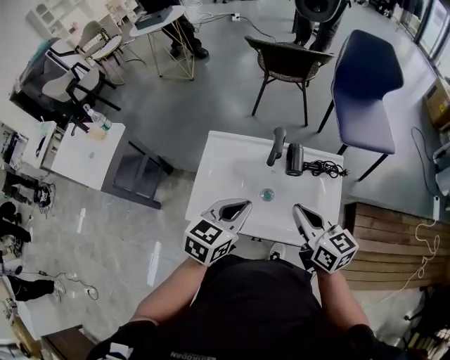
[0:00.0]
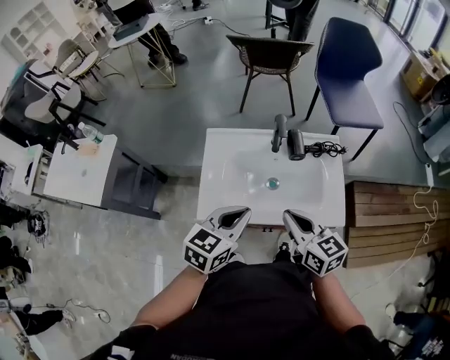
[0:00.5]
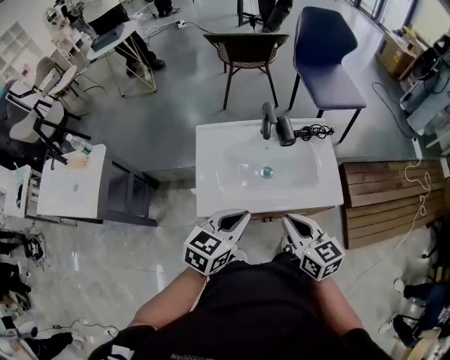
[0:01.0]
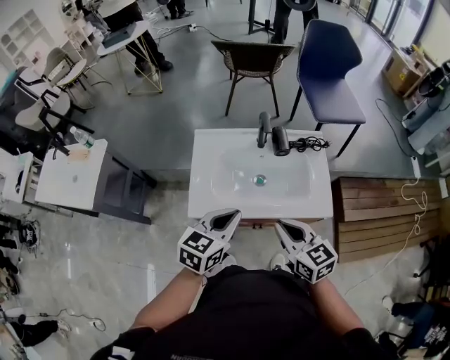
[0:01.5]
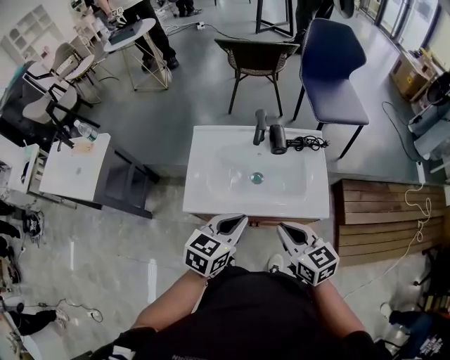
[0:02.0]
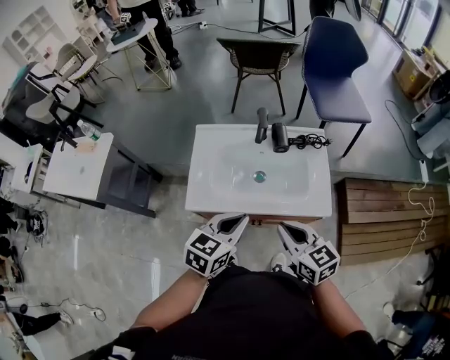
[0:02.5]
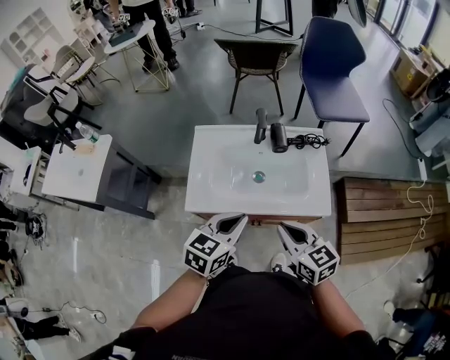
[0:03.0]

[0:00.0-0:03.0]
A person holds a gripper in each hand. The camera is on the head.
0:00.0 to 0:01.5: The right gripper travels backward and to the left by about 15 cm; the left gripper travels backward by some 10 cm.
0:01.5 to 0:03.0: There are only small adjustments of the grippers.

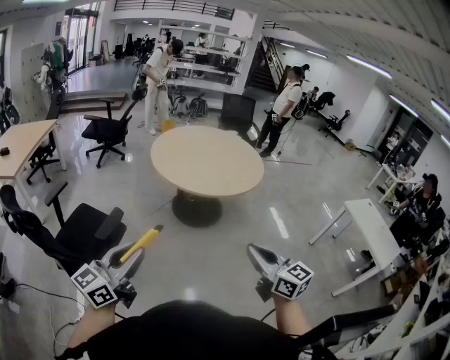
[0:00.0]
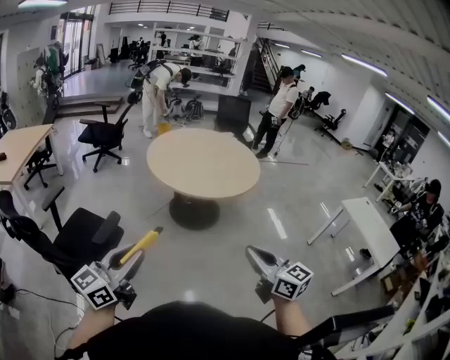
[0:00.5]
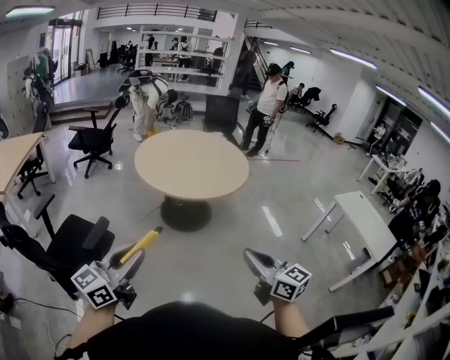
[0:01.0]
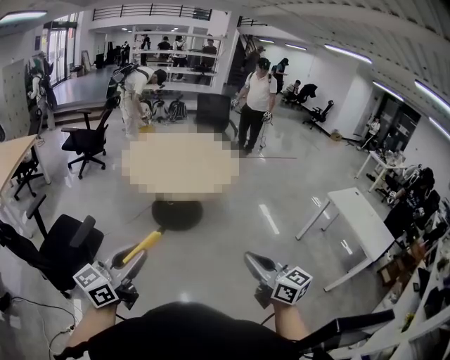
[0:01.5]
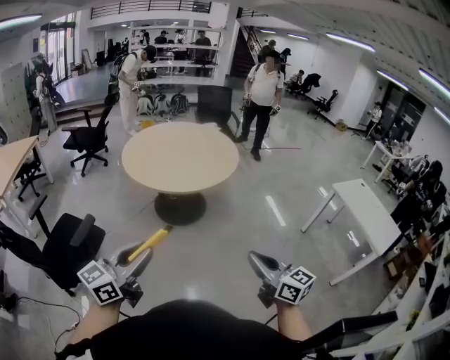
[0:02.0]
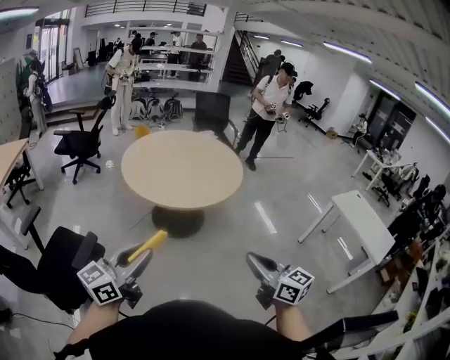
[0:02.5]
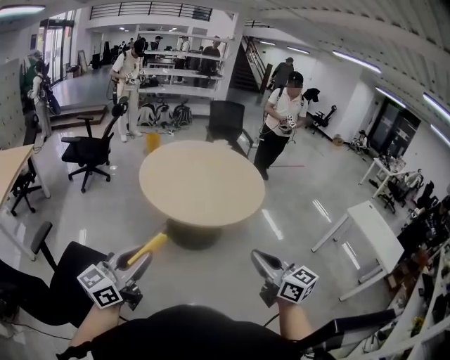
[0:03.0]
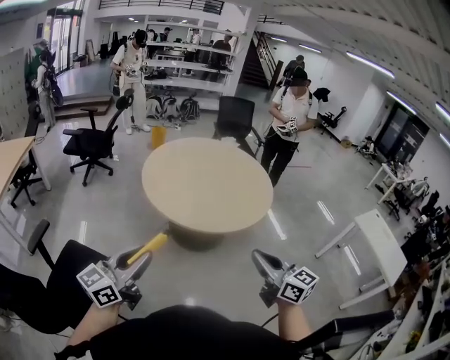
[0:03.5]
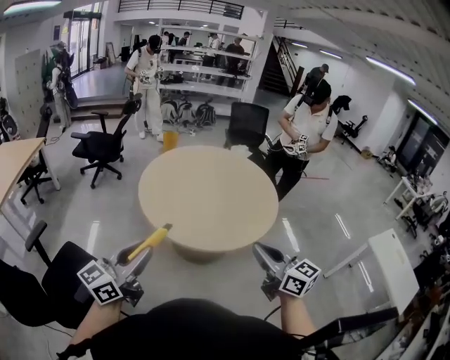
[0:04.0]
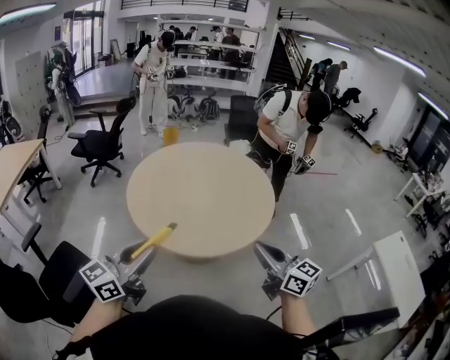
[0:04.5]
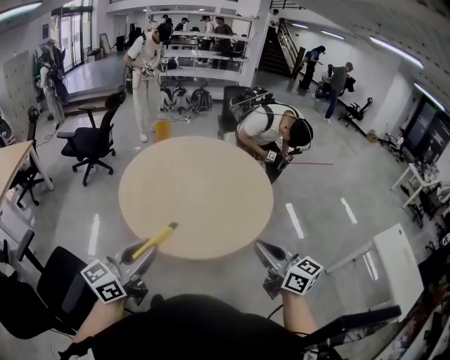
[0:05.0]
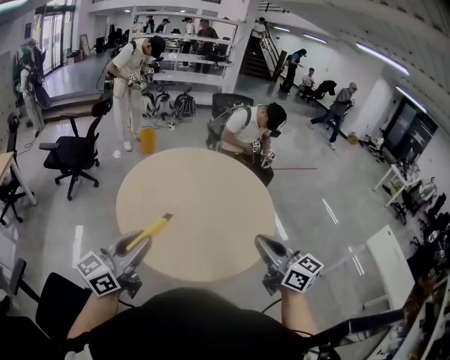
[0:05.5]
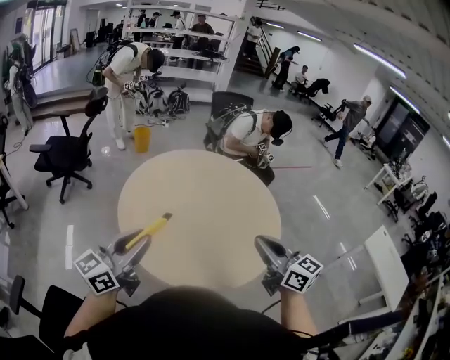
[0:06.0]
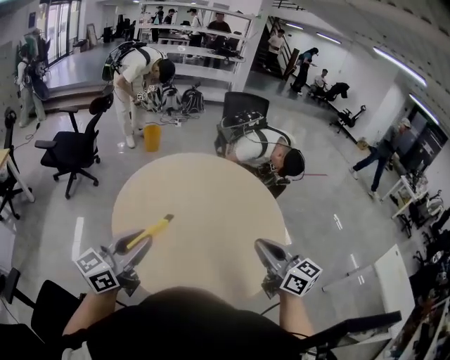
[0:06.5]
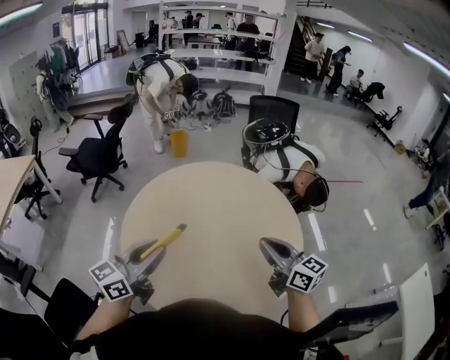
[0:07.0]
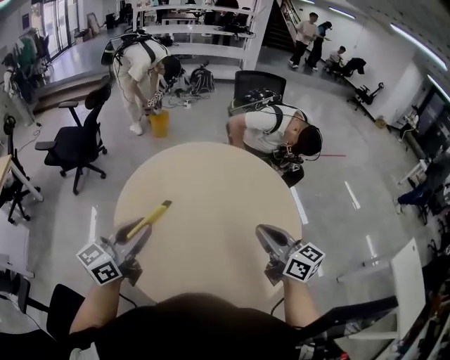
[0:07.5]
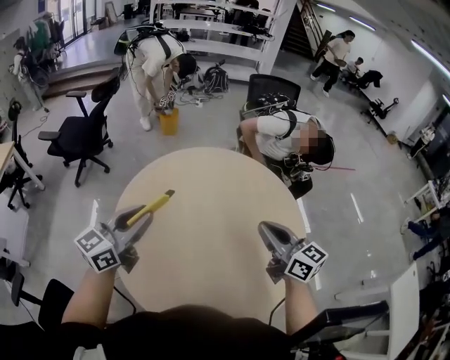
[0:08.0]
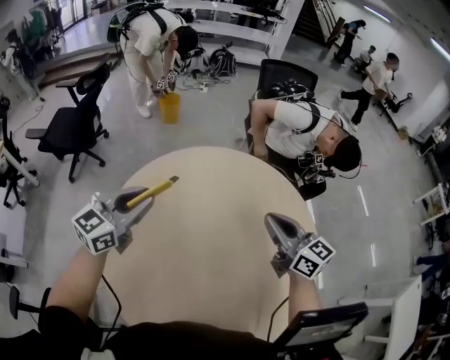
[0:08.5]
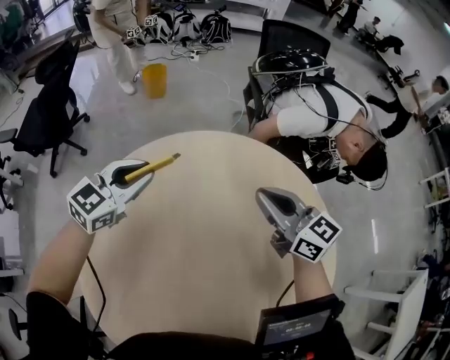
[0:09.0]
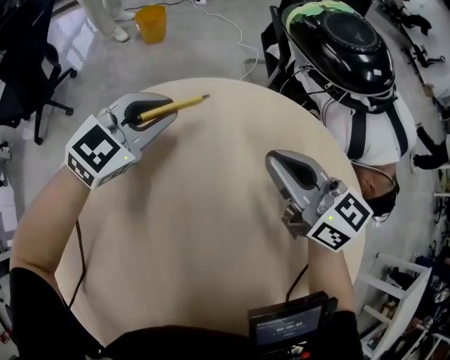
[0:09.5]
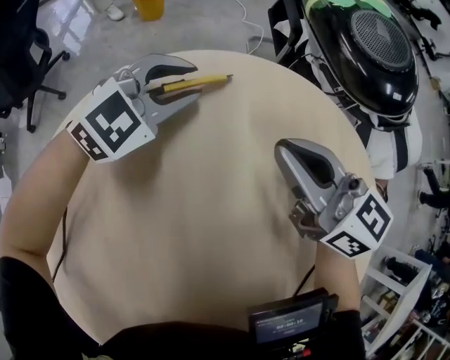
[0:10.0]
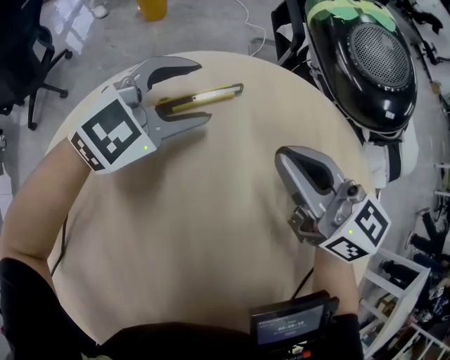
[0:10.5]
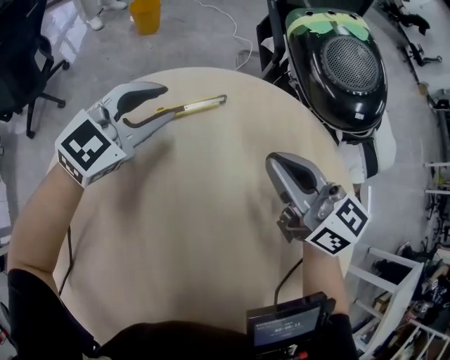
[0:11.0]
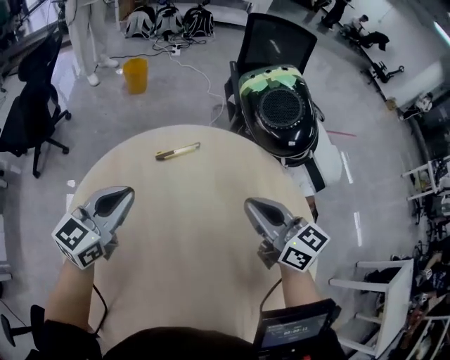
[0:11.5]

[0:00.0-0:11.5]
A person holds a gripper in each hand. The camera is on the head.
0:00.0 to 0:02.0: The two grippers go approximately 20 cm to the right.
0:02.0 to 0:04.0: The left gripper is displaced forward and to the left by roughly 40 cm, while the right gripper moves forward, approximately 40 cm.
0:04.0 to 0:06.0: The grippers both shift forward by roughly 30 cm.
0:06.0 to 0:07.5: The left gripper heads forward and to the right, covering about 20 cm. The right gripper travels forward by about 20 cm.
0:07.5 to 0:09.5: Both grippers are carried forward, about 50 cm. Both grippers travel together downward, roughly 35 cm. The left gripper changes its angle by about 50 degrees.
0:09.5 to 0:11.5: The left gripper travels backward, upward and to the left by roughly 25 cm, rotates approximately 30 degrees, and opens and closes again; the right gripper moves upward and backward, about 15 cm.

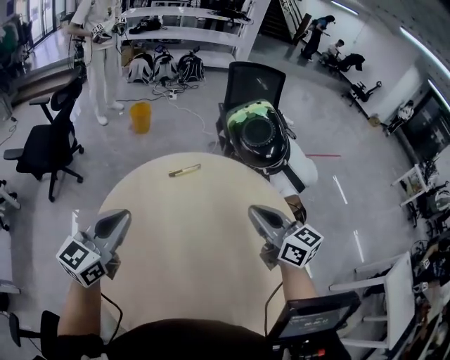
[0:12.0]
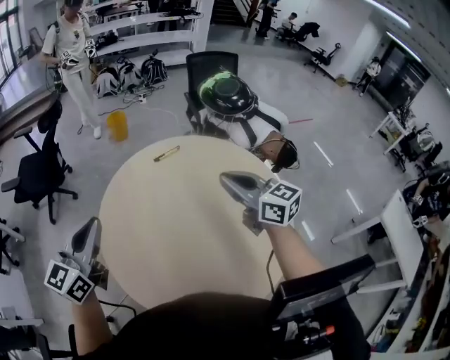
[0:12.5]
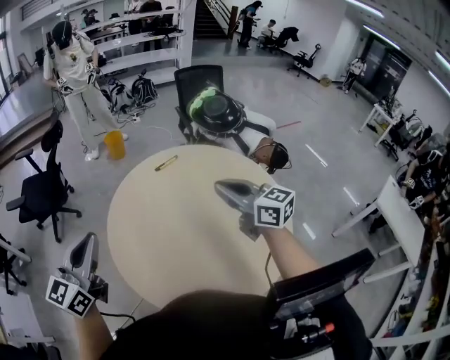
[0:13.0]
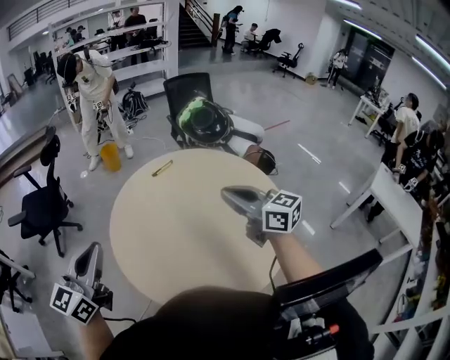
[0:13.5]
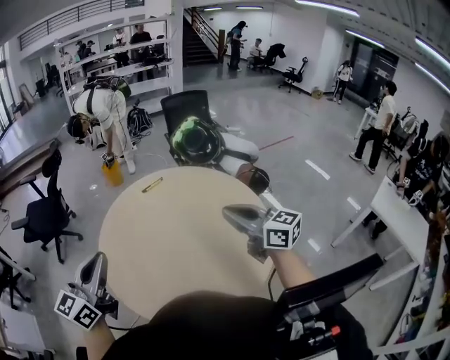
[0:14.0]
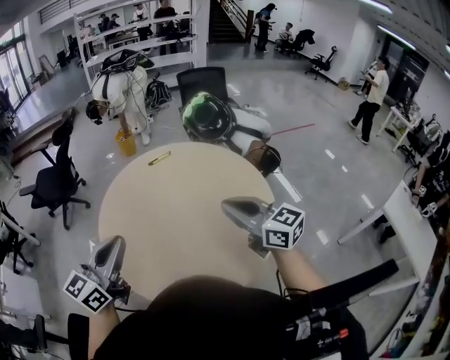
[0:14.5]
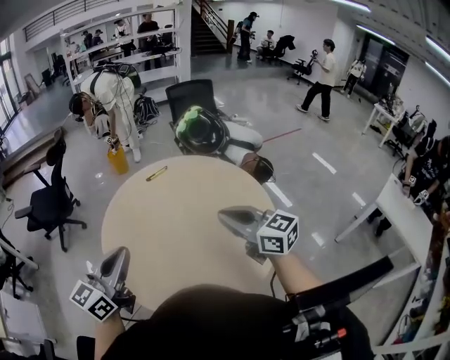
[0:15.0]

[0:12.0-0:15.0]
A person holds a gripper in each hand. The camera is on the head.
0:12.0 to 0:13.5: The left gripper is displaced backward, to the left and upward by about 30 cm. Meanwhile the right gripper shifts some 25 cm backward and upward.
0:13.5 to 0:15.0: The left gripper moves to the right, some 15 cm; the right gripper moves to the right and backward, approximately 10 cm.

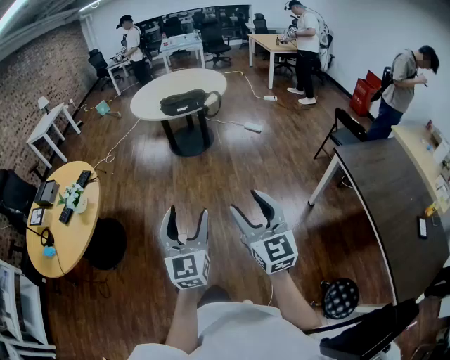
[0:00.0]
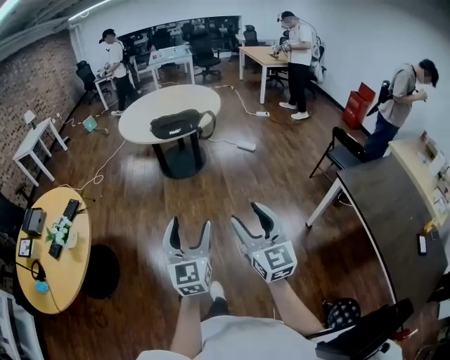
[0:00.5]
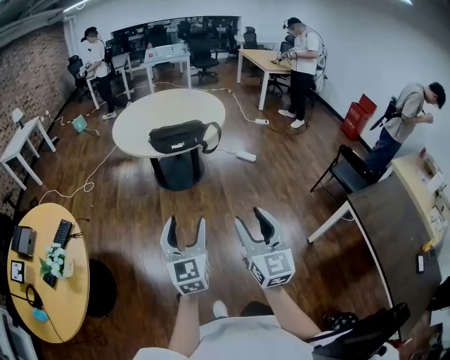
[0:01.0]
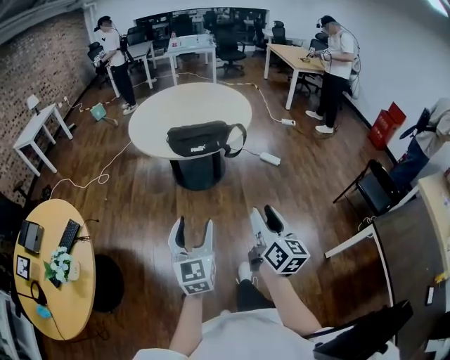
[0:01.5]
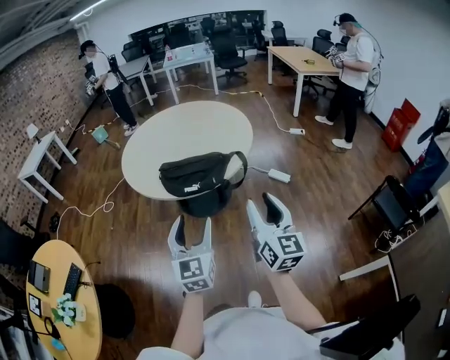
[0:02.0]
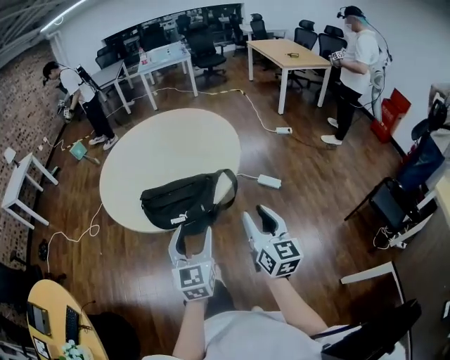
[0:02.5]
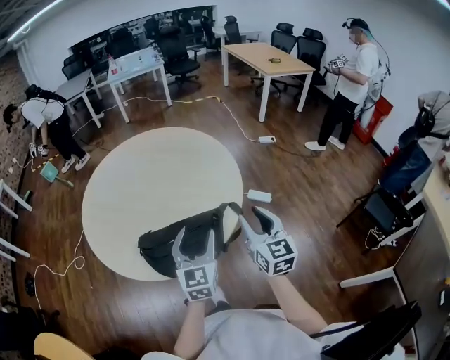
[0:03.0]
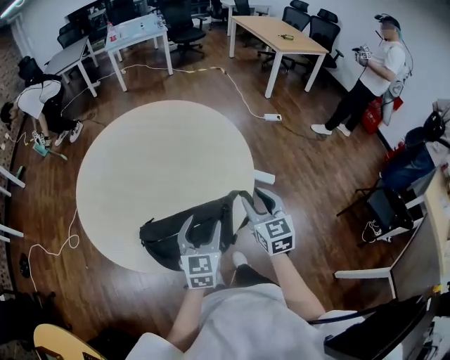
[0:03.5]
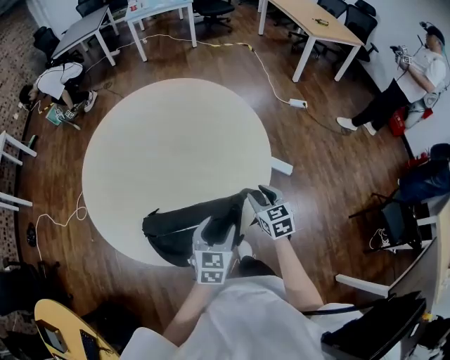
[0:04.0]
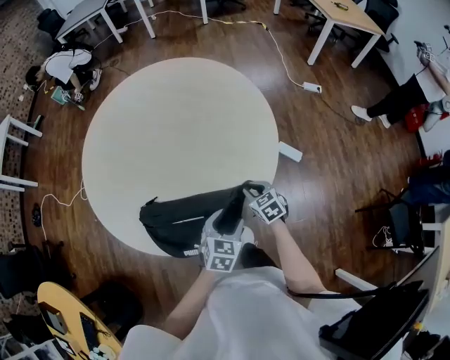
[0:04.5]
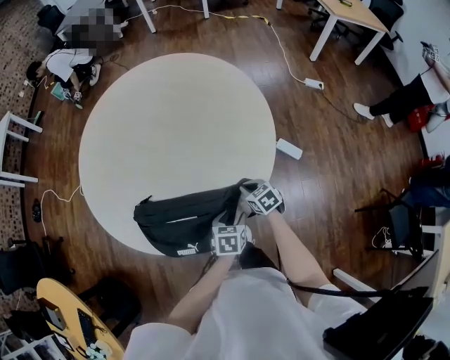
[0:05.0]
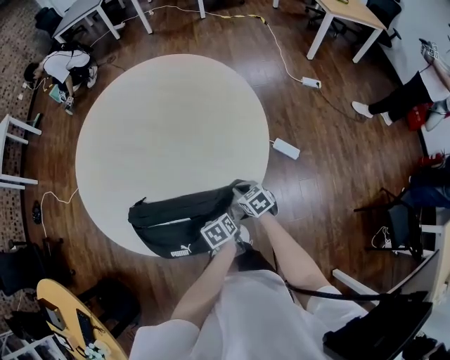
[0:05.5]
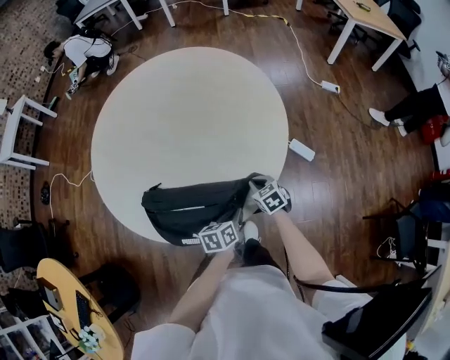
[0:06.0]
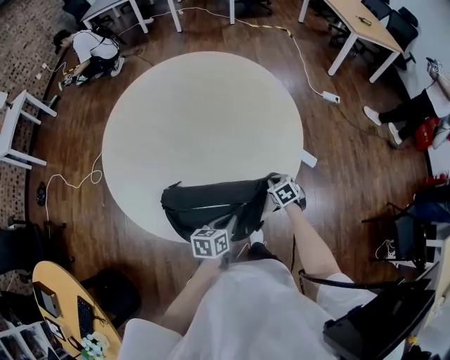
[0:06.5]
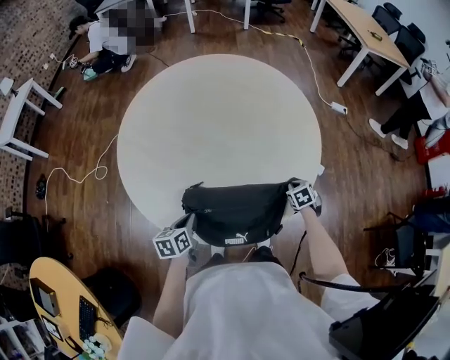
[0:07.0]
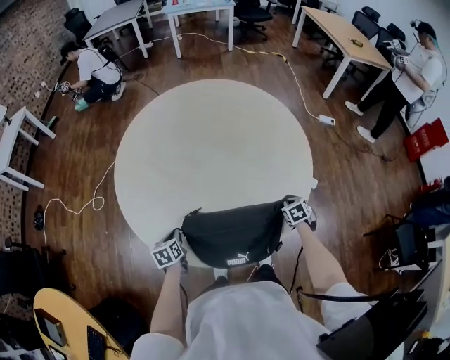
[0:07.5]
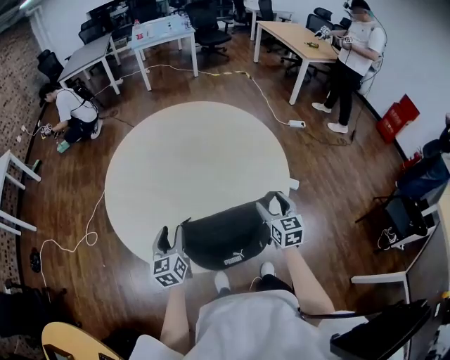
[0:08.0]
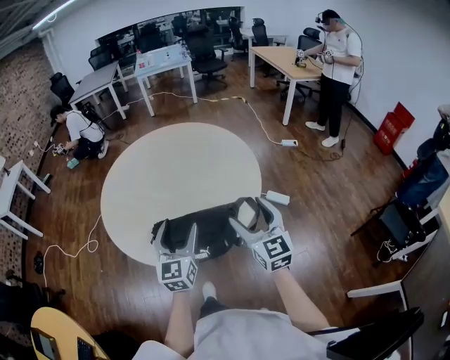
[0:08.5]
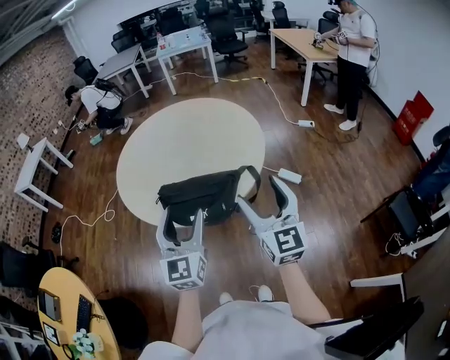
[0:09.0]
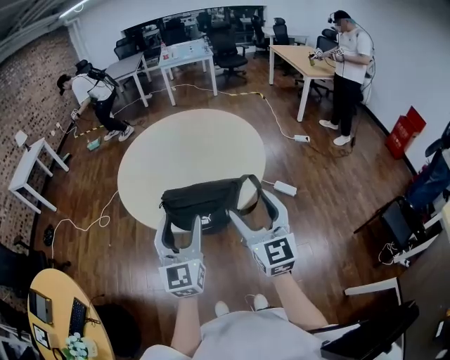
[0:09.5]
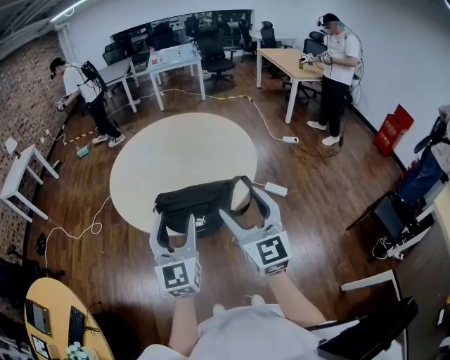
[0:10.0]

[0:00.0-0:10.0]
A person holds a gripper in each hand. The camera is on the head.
0:00.0 to 0:02.0: The two grippers travel together, forward, about 70 cm. The right gripper rotates about 20 degrees.
0:02.0 to 0:04.0: The two grippers travel together, forward, roughly 50 cm. The two grippers go some 20 cm downward. The right gripper points its fingers about 40 degrees further downward; the left gripper swivels approximately 40 degrees.
0:04.0 to 0:06.0: The left gripper shifts about 15 cm downward and to the right, rotates around the line of its fingers by roughly 50 degrees, counterclockwise from behind, and closes up, while the right gripper heads downward, covering about 15 cm, swivels approximately 30 degrees, and closes up.
0:06.0 to 0:08.0: The right gripper travels upward by roughly 20 cm, rotates some 40 degrees, and opens its fingers. Meanwhile the left gripper travels to the left and upward by about 40 cm, turns by approximately 40 degrees, and opens its fingers.
0:08.0 to 0:10.0: The left gripper shifts roughly 40 cm backward, upward and to the right, and turns by approximately 30 degrees; the right gripper heads backward and upward, covering about 40 cm, and swivels approximately 30 degrees.
